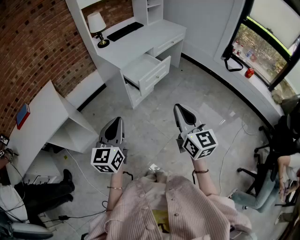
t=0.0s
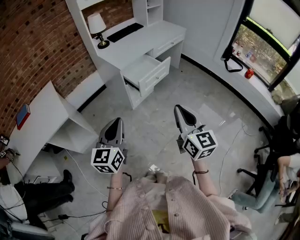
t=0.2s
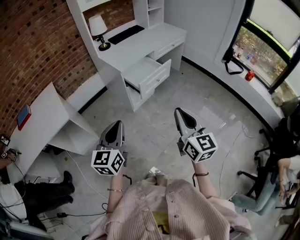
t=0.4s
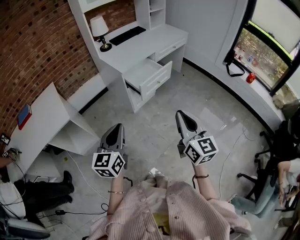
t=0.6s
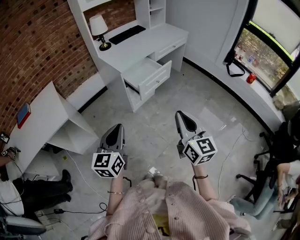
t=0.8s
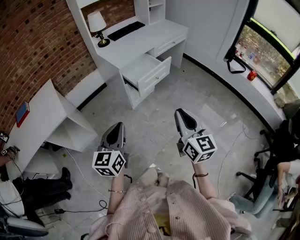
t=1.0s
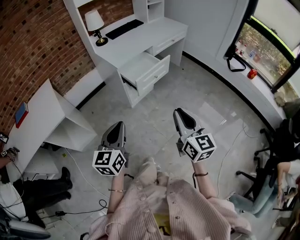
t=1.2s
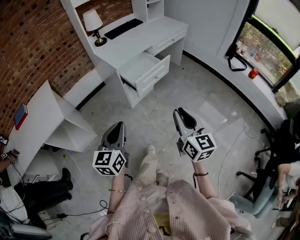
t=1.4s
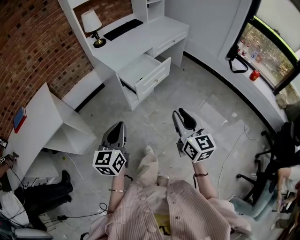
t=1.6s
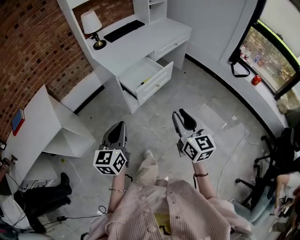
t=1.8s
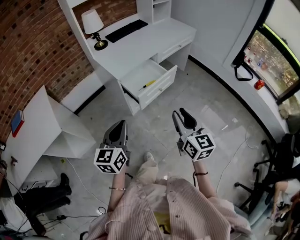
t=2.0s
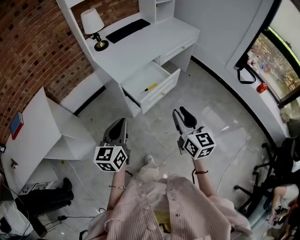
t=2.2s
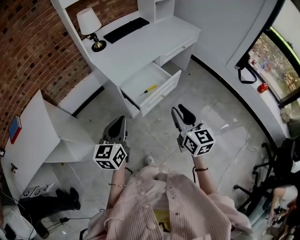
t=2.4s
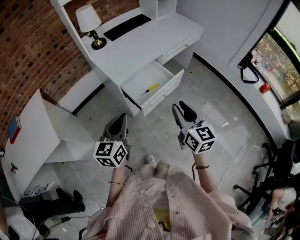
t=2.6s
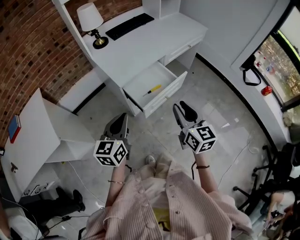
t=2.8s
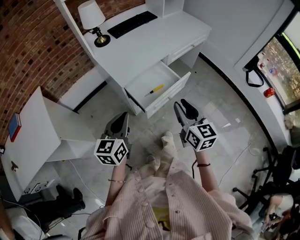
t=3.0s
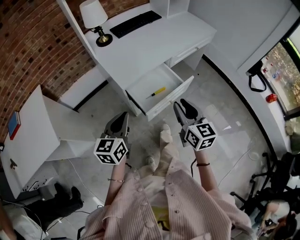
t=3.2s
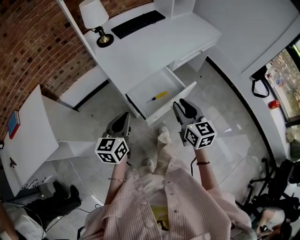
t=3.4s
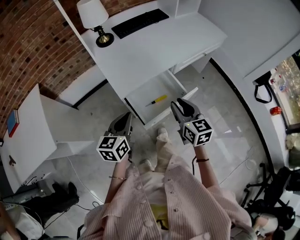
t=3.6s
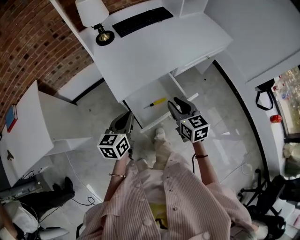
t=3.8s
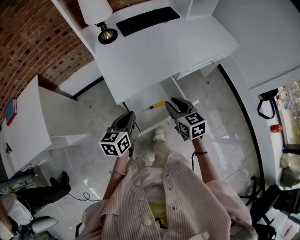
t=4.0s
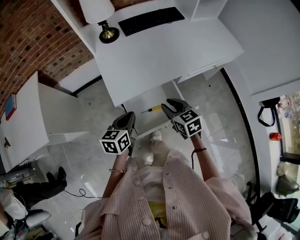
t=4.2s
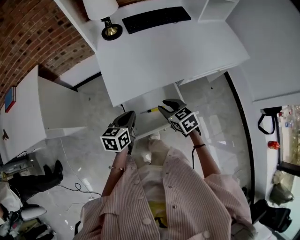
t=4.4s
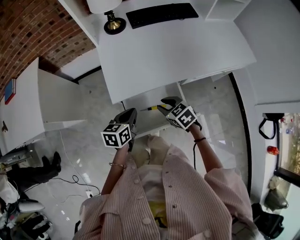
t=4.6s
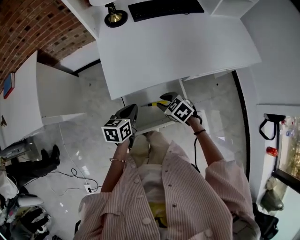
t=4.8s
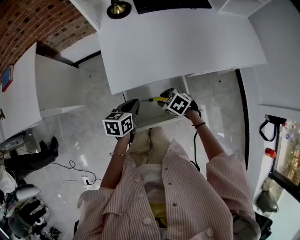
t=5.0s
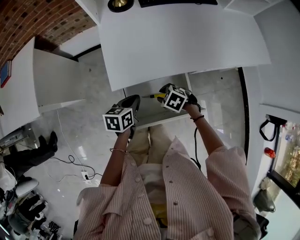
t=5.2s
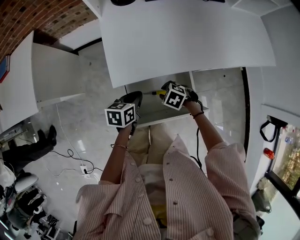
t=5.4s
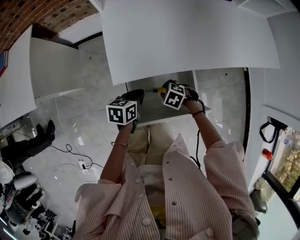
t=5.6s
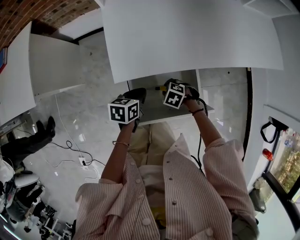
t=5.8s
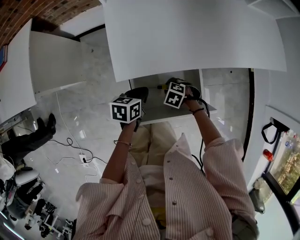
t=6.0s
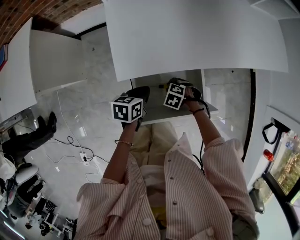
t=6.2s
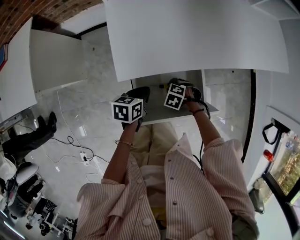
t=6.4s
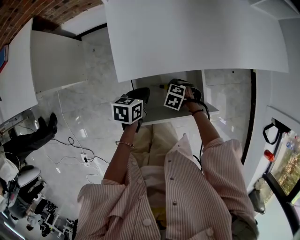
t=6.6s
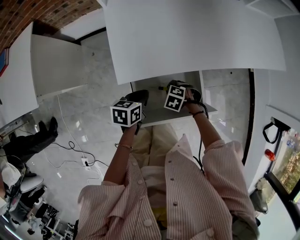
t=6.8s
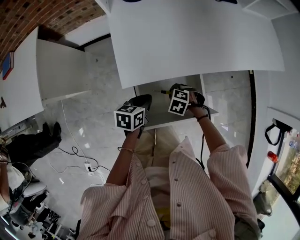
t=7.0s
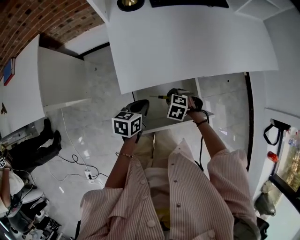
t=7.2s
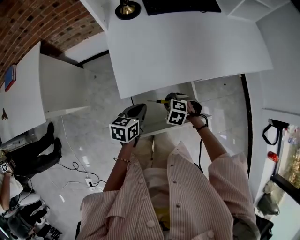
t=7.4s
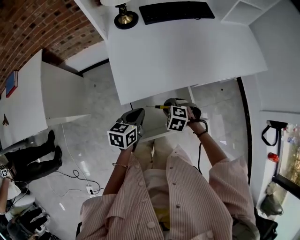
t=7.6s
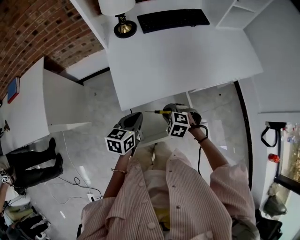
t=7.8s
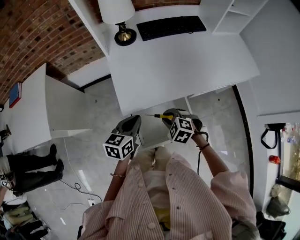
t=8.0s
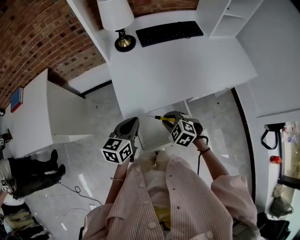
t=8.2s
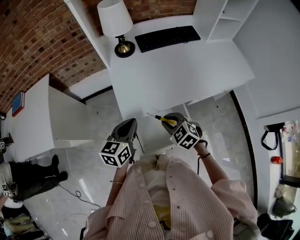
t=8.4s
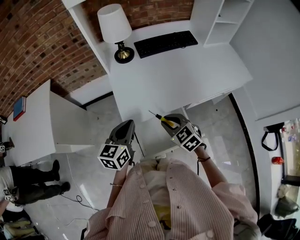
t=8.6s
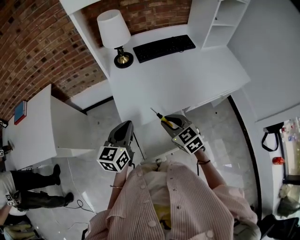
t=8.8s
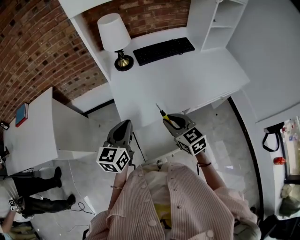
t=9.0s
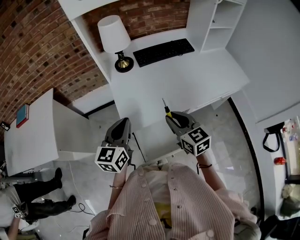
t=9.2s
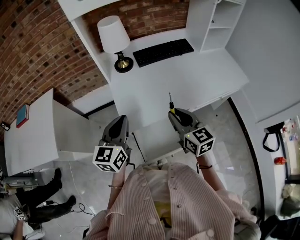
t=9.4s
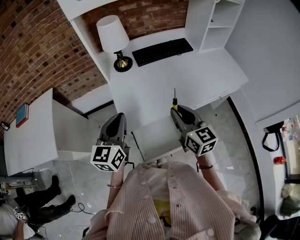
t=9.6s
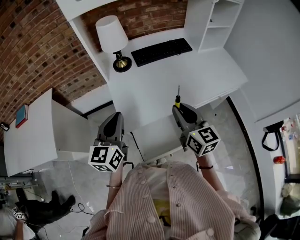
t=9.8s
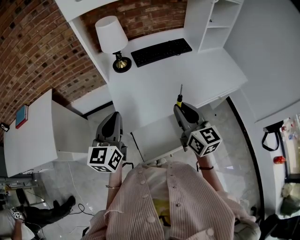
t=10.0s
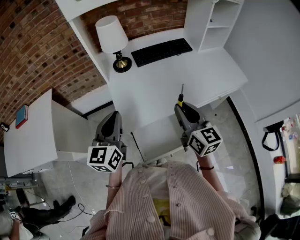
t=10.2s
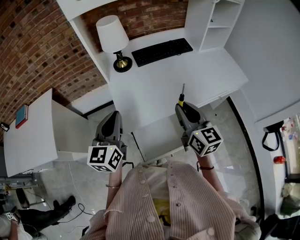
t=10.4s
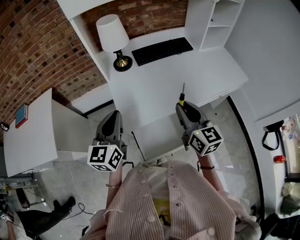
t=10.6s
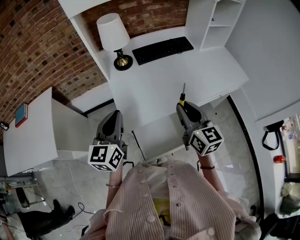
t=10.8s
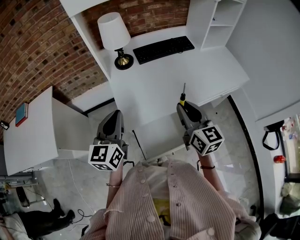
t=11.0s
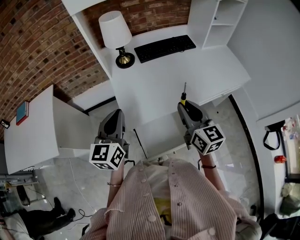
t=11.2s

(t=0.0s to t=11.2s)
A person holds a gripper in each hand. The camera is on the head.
t=0.0s - t=1.6s: The right gripper is displaced forward and downward by roughly 10 cm; the left gripper travels forward by roughly 5 cm.
t=1.6s - t=3.2s: The grippers both shift forward by roughly 30 cm.
t=3.2s - t=4.8s: The left gripper moves some 25 cm, and rotates about 30 degrees, while the right gripper goes approximately 20 cm downward, and tilts its fingers about 40 degrees downward.
t=4.8s - t=6.4s: The left gripper goes roughly 10 cm downward, while the right gripper goes some 15 cm downward, and swivels approximately 40 degrees.
t=6.4s - t=8.0s: Both grippers move upward, approximately 20 cm. The right gripper turns by approximately 20 degrees. Meanwhile the left gripper turns by approximately 30 degrees.
t=8.0s - t=9.6s: Both grippers travel together upward, roughly 20 cm. The right gripper angles its fingers upward, by about 50 degrees. Meanwhile the left gripper changes its angle by approximately 30 degrees.
t=9.6s - t=11.2s: The grippers move only a little.

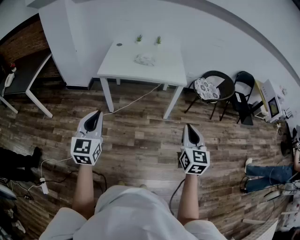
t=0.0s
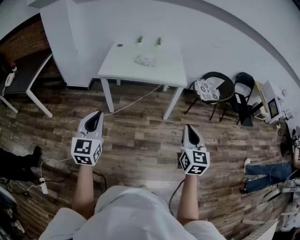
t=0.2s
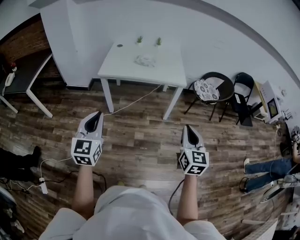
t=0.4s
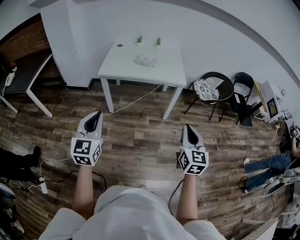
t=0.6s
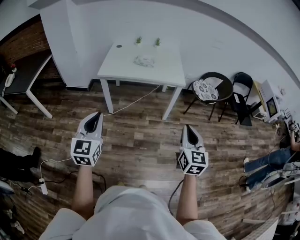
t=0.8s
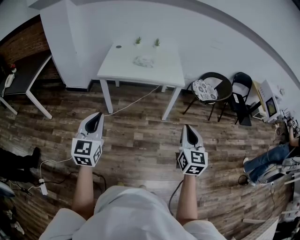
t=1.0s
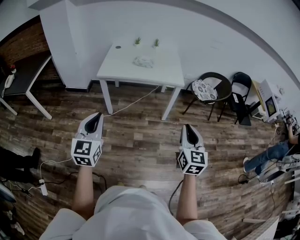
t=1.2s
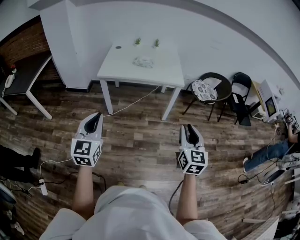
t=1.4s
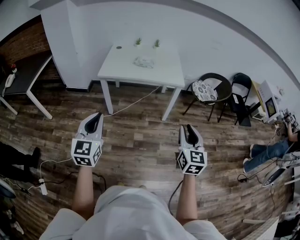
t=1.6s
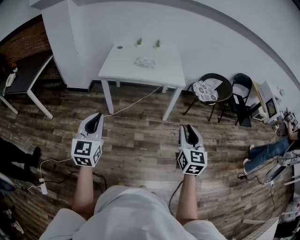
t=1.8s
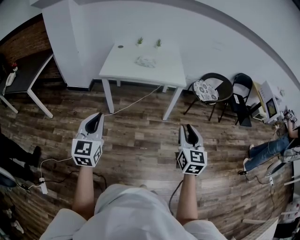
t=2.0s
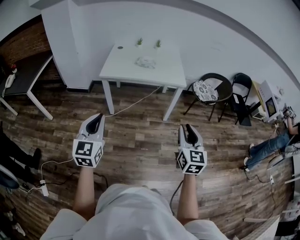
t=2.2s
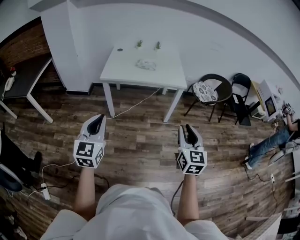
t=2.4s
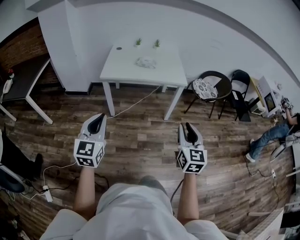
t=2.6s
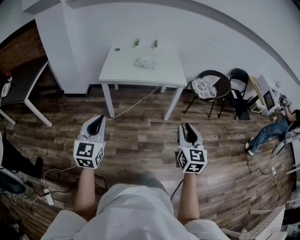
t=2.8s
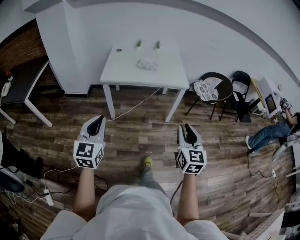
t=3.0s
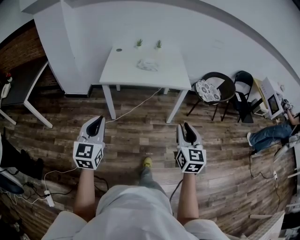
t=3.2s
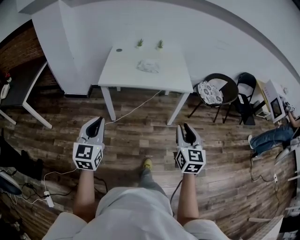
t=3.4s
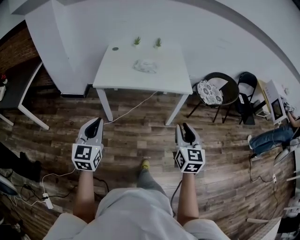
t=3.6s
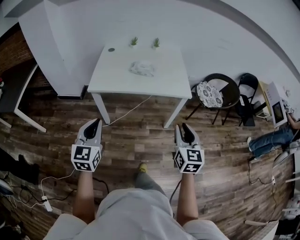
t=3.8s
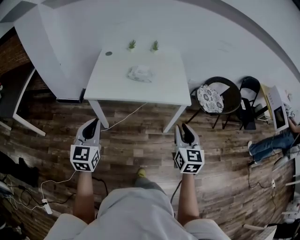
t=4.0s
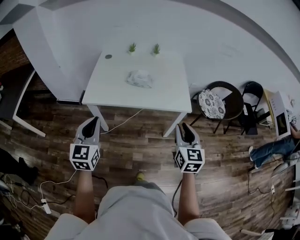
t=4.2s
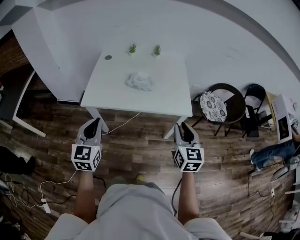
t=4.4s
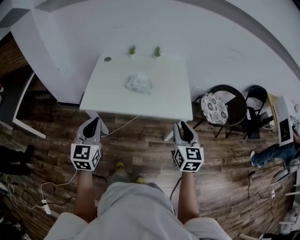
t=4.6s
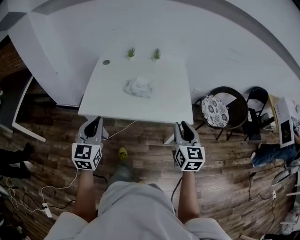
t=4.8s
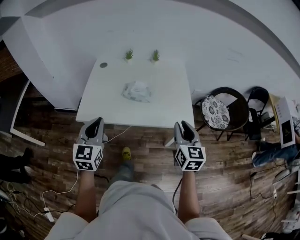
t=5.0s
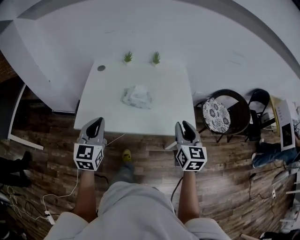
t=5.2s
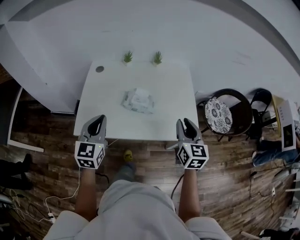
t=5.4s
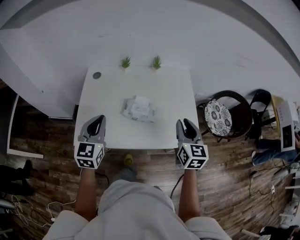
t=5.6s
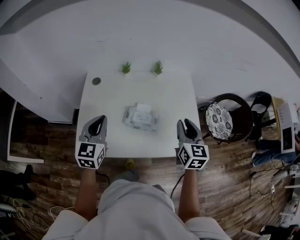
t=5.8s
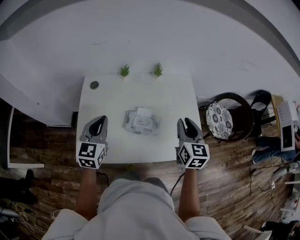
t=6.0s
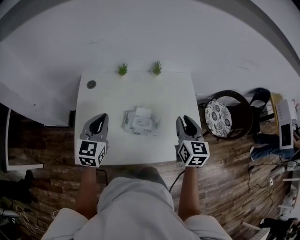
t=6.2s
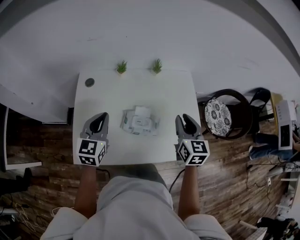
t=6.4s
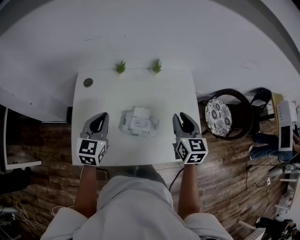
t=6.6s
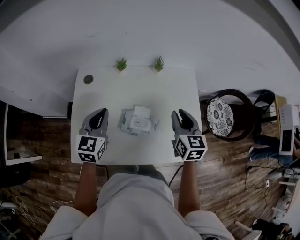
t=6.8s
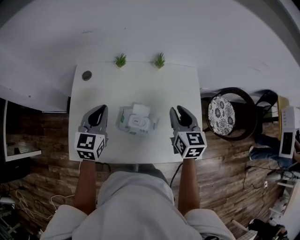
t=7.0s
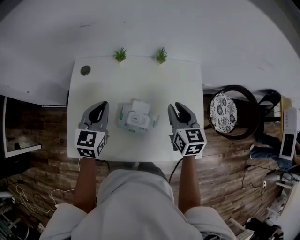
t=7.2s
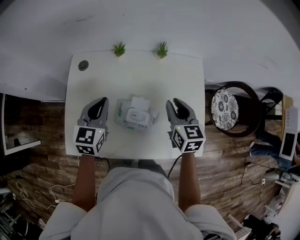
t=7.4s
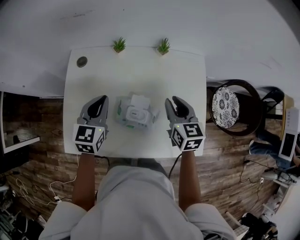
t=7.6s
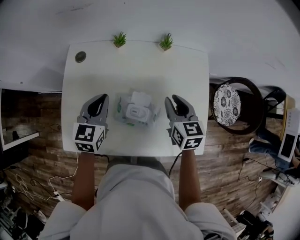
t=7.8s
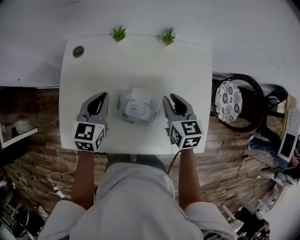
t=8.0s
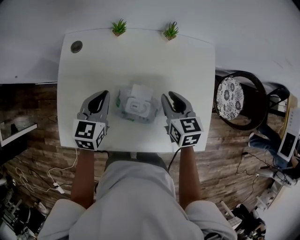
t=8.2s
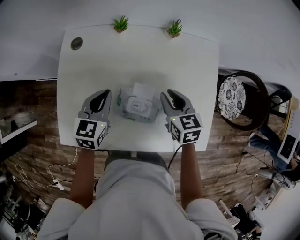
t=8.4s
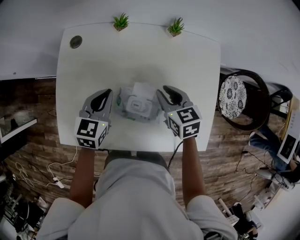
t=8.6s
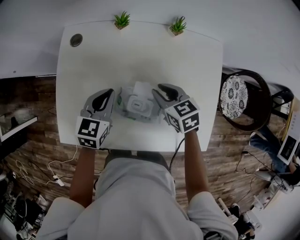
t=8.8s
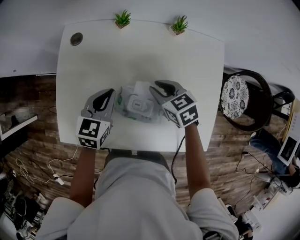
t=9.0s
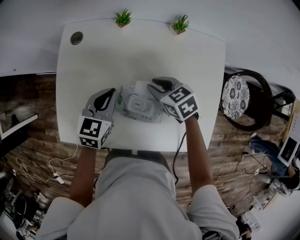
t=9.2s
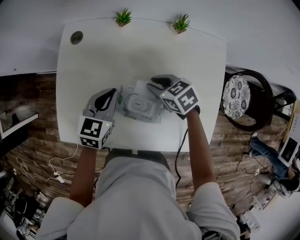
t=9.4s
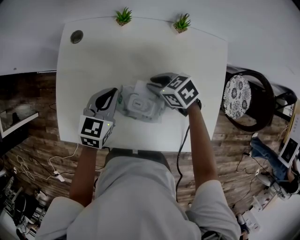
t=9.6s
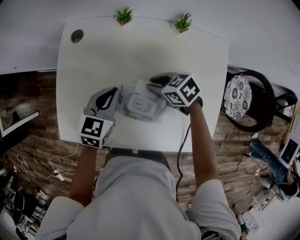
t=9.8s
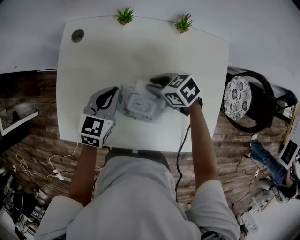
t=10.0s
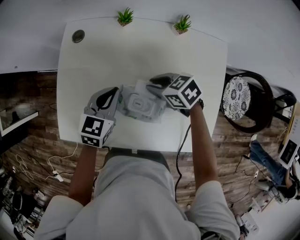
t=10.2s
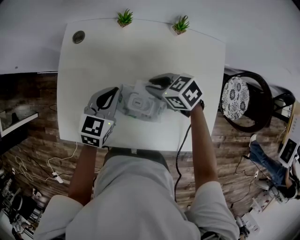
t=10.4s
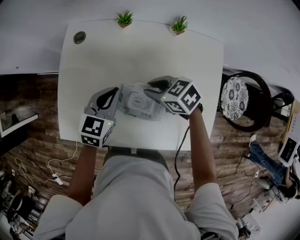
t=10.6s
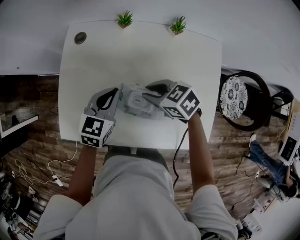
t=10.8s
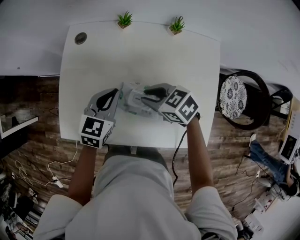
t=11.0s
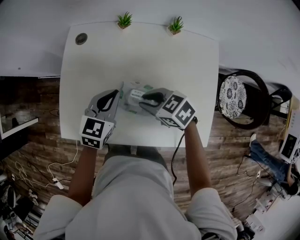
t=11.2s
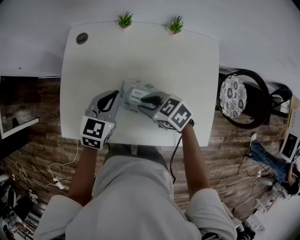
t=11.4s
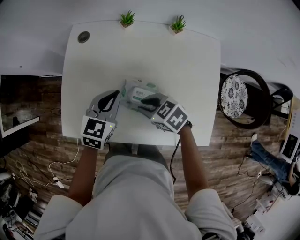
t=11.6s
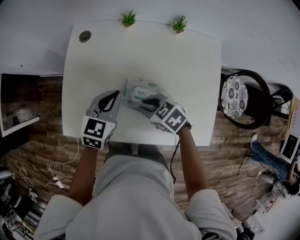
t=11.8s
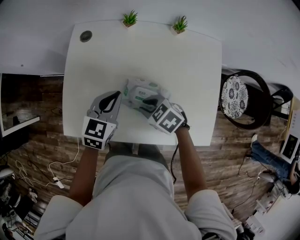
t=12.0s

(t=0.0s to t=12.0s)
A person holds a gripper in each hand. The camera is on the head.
t=0.0s - t=1.6s: The right gripper opens its fingers.
t=1.6s - t=3.0s: Both grippers move to the left, approximately 10 cm.
t=3.0s - t=4.4s: The two grippers go some 40 cm forward.
t=4.4s - t=6.0s: Both grippers travel together forward, some 40 cm.
t=6.0s - t=7.6s: The grippers both shift forward and downward by about 15 cm. The right gripper swivels approximately 20 degrees.
t=7.6s - t=9.0s: The right gripper is displaced downward and to the left by about 15 cm, and swivels about 30 degrees. The left gripper is displaced downward by about 10 cm.
t=9.0s - t=10.4s: The right gripper turns by some 20 degrees.
t=10.4s - t=12.0s: The left gripper shifts by some 5 cm; the right gripper moves backward and to the left, approximately 10 cm.

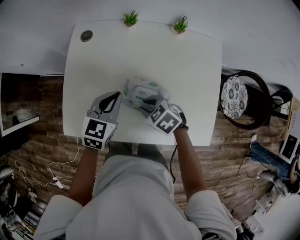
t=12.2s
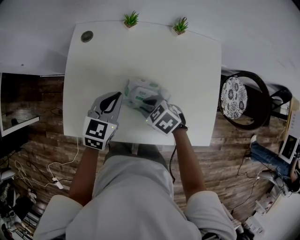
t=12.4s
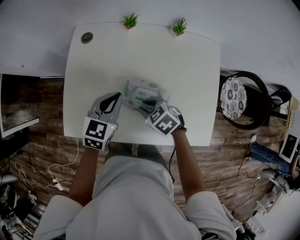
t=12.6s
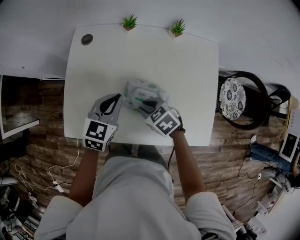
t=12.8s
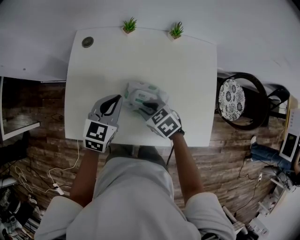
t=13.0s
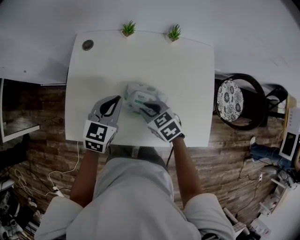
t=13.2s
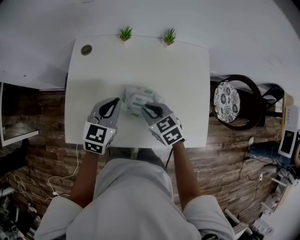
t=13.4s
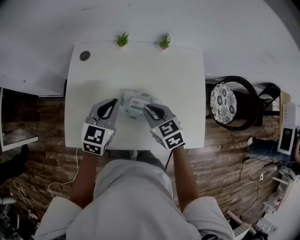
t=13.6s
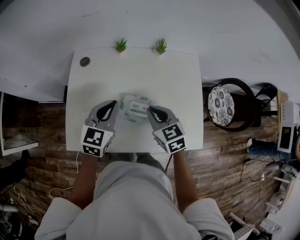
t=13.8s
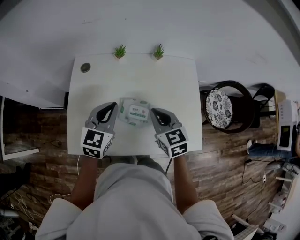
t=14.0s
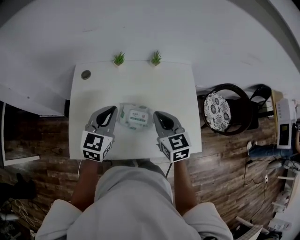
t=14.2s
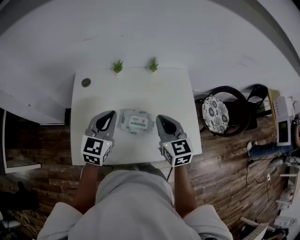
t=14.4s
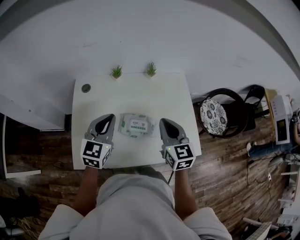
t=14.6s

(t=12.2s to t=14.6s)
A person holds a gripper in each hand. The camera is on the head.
t=12.2s - t=13.4s: The right gripper goes some 5 cm upward, and changes its angle by approximately 30 degrees.
t=13.4s - t=14.6s: The left gripper goes about 10 cm upward, while the right gripper is displaced upward and to the right by roughly 20 cm, and swivels some 40 degrees.
